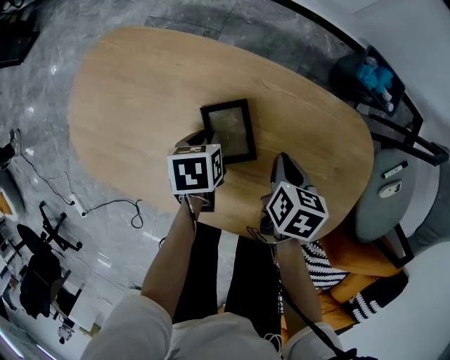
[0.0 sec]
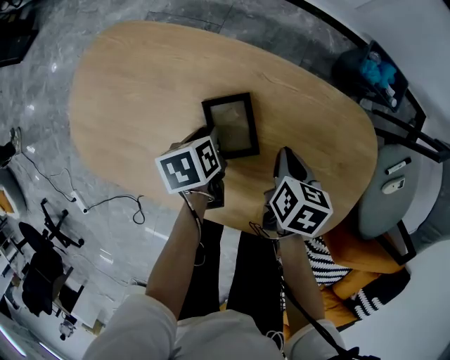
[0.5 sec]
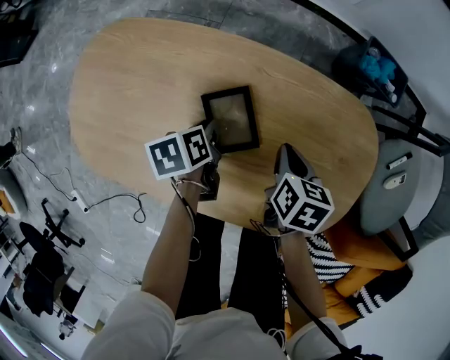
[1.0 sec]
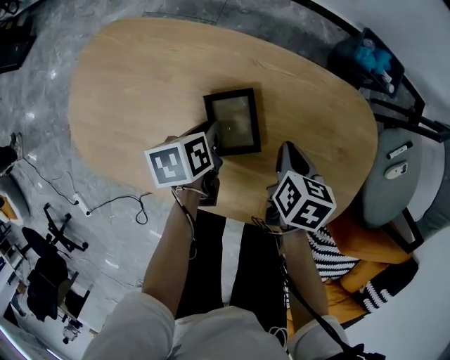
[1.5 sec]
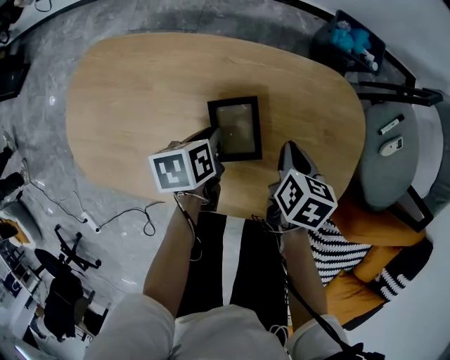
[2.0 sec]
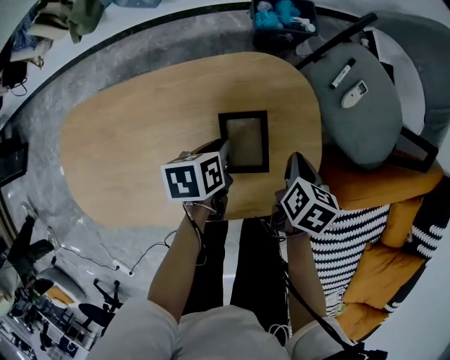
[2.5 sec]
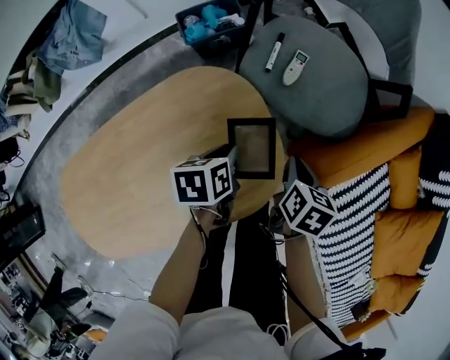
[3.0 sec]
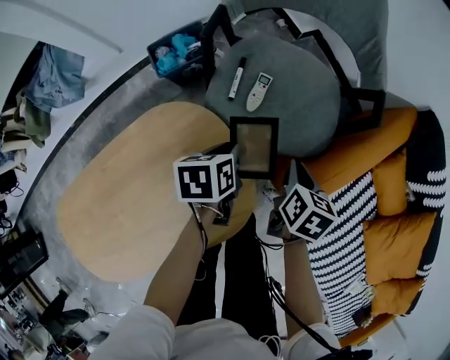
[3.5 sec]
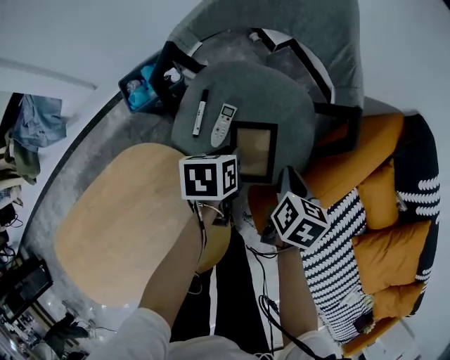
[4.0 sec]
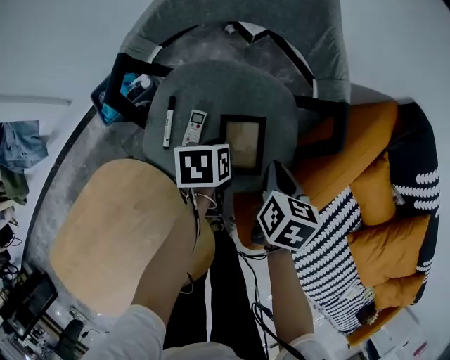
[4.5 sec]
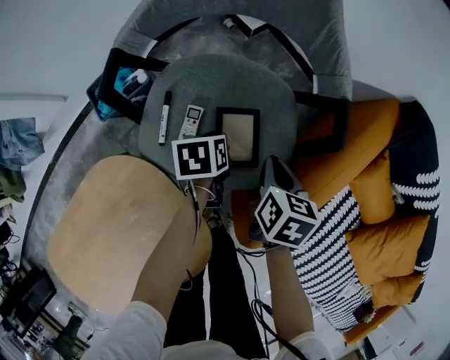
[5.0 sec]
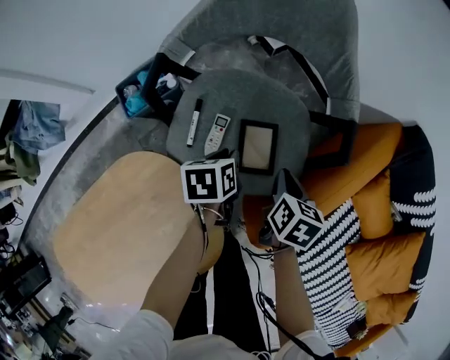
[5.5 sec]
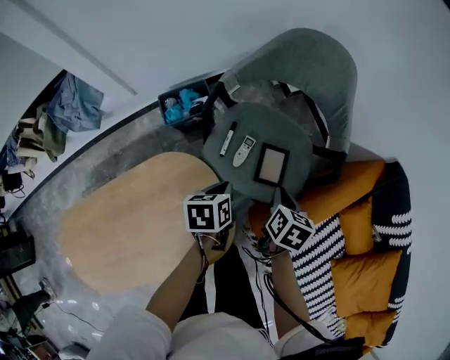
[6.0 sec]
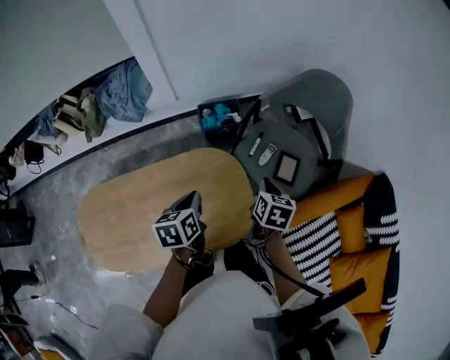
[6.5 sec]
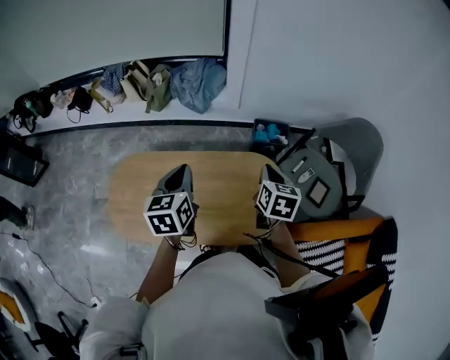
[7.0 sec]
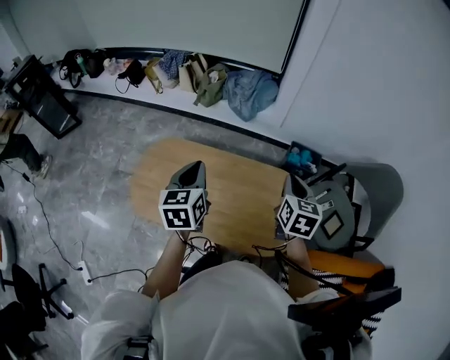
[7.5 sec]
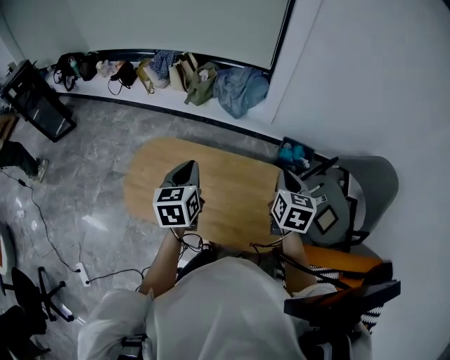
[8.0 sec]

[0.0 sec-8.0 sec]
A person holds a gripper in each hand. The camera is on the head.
0.0 sec to 2.0 sec: The grippers both shift to the right by some 5 cm.
2.0 sec to 4.0 sec: The two grippers travel together, some 50 cm. The right gripper turns by roughly 50 degrees. The left gripper twists roughly 50 degrees clockwise, seen from behind.
4.0 sec to 6.0 sec: The left gripper shifts about 10 cm upward and backward. The right gripper travels upward and to the left by some 10 cm.
6.0 sec to 8.0 sec: The two grippers travel together, approximately 50 cm. The left gripper changes its angle by about 60 degrees; the right gripper rotates approximately 60 degrees.

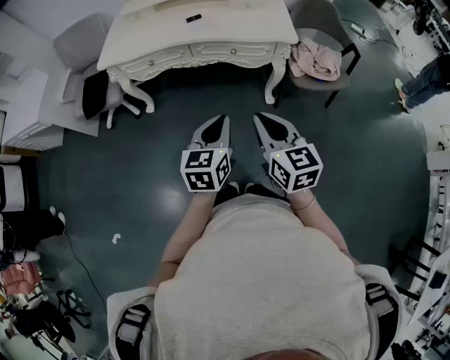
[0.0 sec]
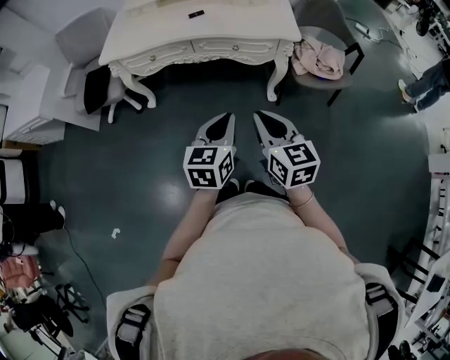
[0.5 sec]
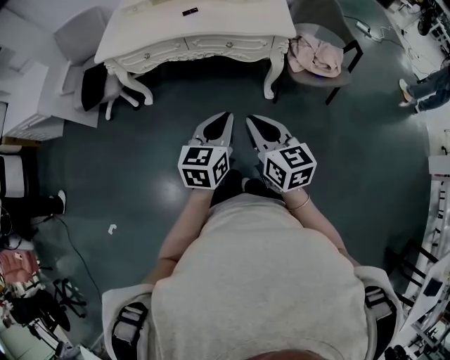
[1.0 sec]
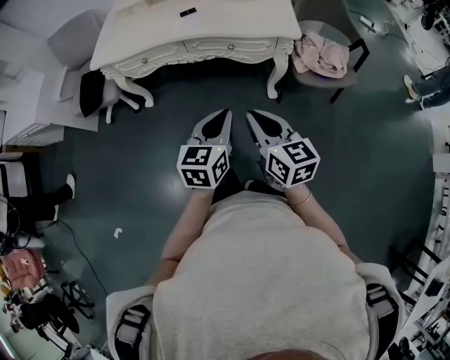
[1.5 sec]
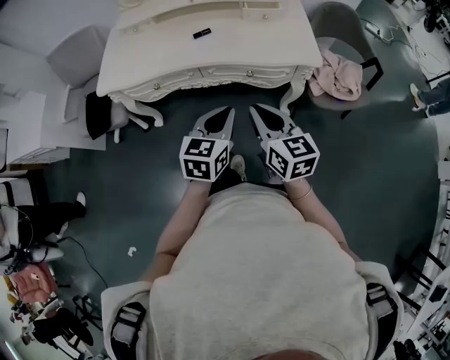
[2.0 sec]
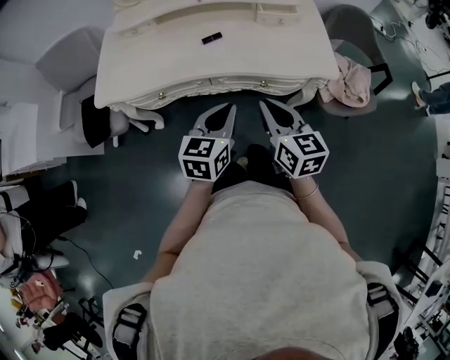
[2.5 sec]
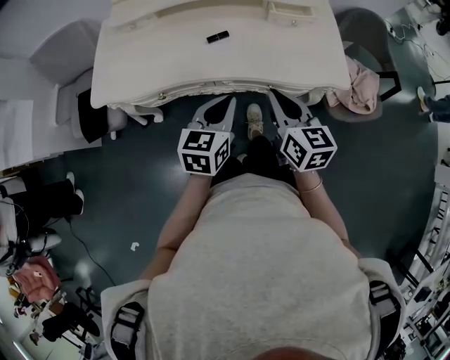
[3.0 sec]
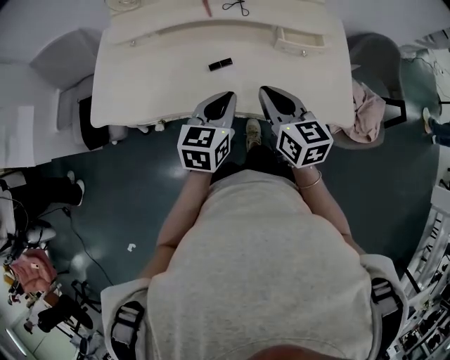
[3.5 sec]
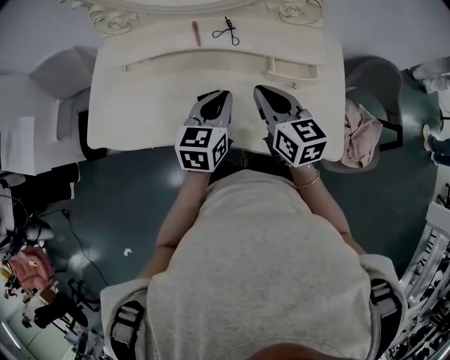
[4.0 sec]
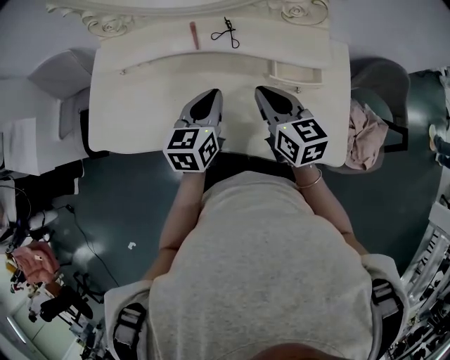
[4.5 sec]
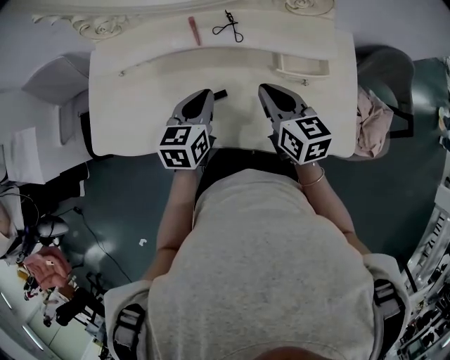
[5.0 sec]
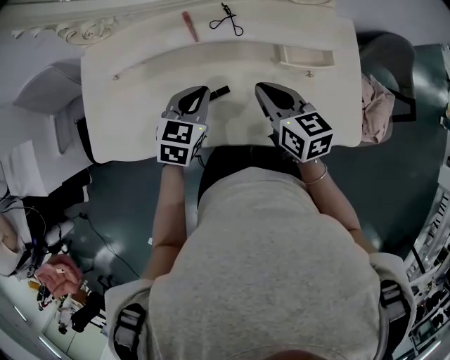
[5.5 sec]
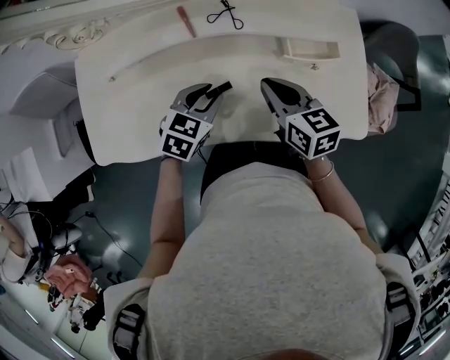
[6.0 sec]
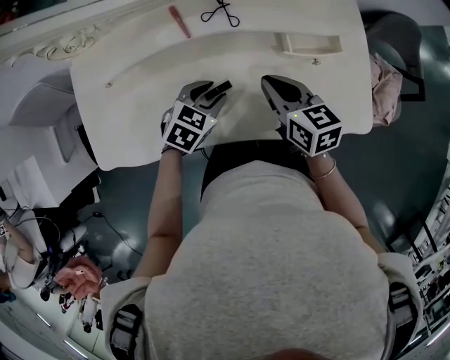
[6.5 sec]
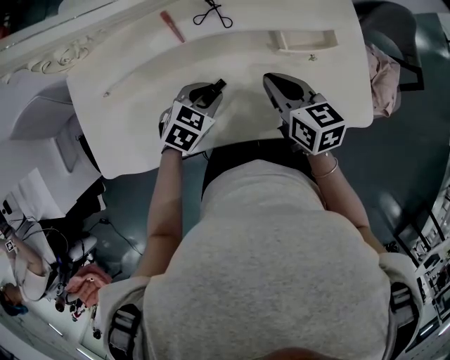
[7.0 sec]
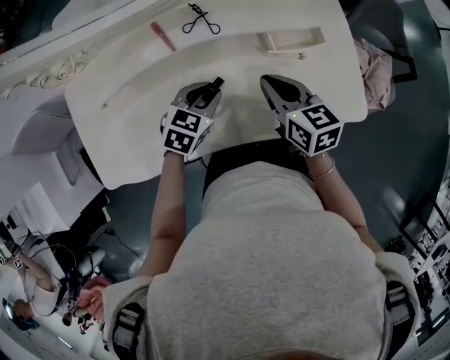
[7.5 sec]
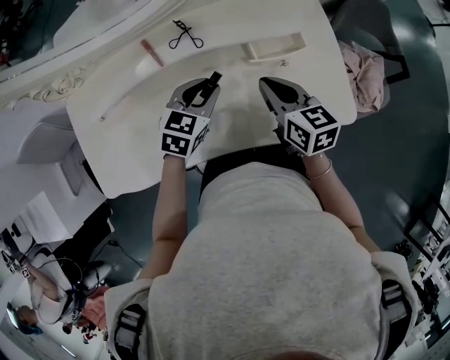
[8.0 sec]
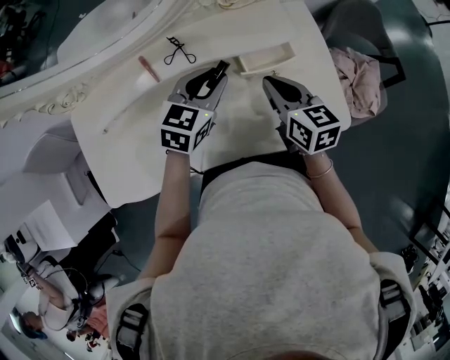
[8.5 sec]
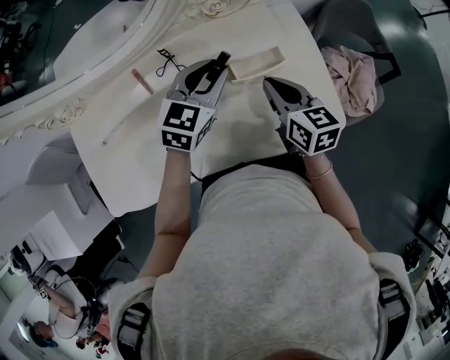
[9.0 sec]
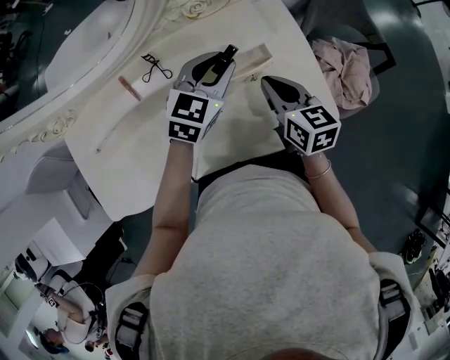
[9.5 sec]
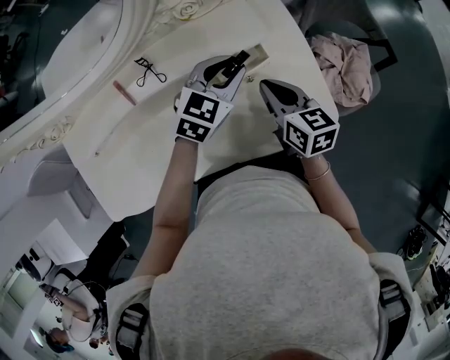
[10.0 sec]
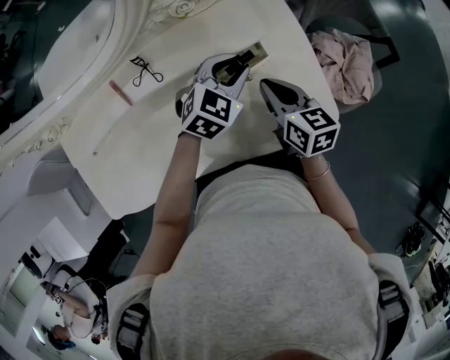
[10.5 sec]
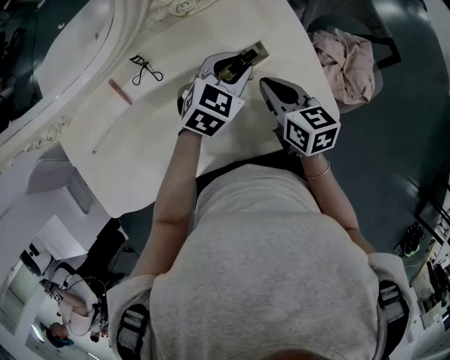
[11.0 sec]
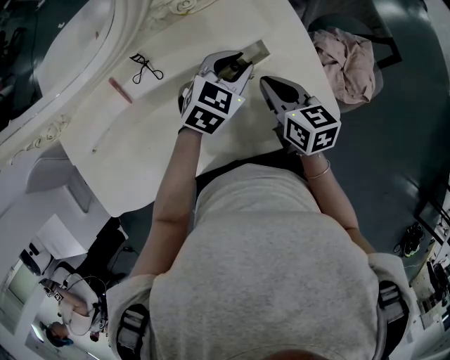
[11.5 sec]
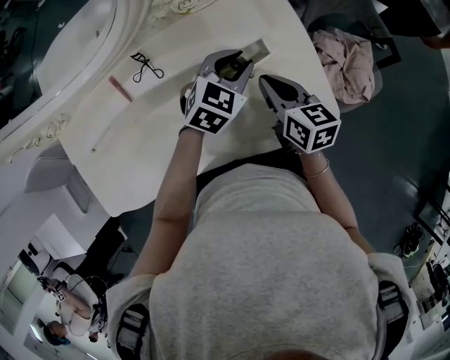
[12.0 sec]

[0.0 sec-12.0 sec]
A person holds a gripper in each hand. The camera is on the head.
0.0 sec to 2.0 sec: Both grippers move forward, approximately 20 cm.
2.0 sec to 4.0 sec: Both grippers travel together forward, approximately 40 cm.
4.0 sec to 6.0 sec: The left gripper travels downward and to the left by some 10 cm, turns by roughly 40 degrees, and opens. The right gripper shifts approximately 5 cm downward.
6.0 sec to 8.0 sec: The right gripper heads to the right, covering roughly 5 cm; the left gripper heads forward and to the right, covering roughly 10 cm.
8.0 sec to 10.0 sec: The right gripper is displaced to the right by some 10 cm. Meanwhile the left gripper goes roughly 20 cm to the right and forward.
10.0 sec to 12.0 sec: The grippers stay close to where they were, moving slightly.

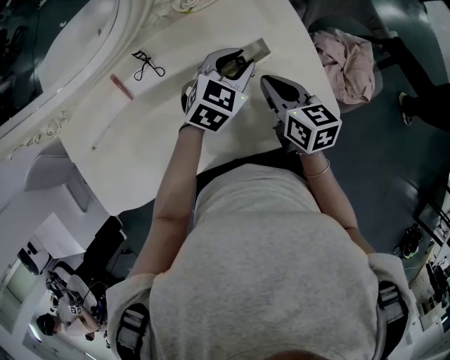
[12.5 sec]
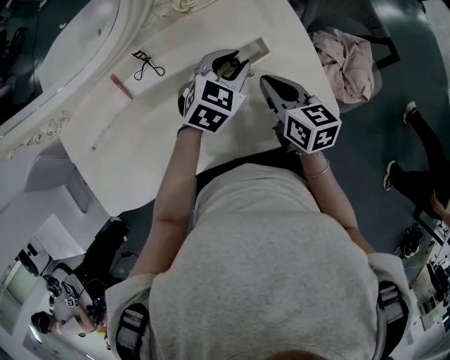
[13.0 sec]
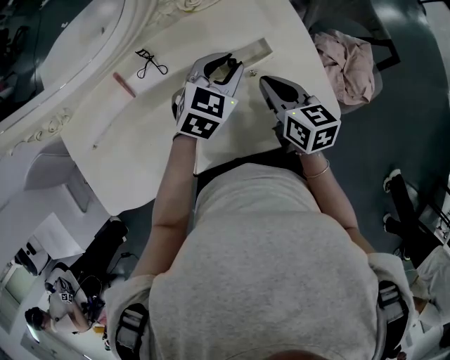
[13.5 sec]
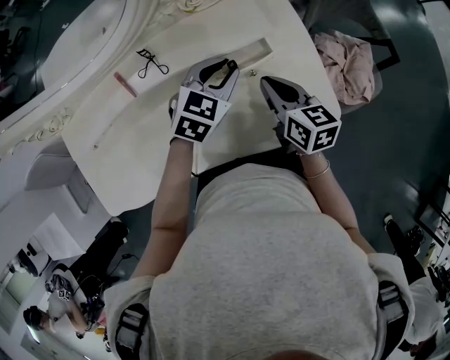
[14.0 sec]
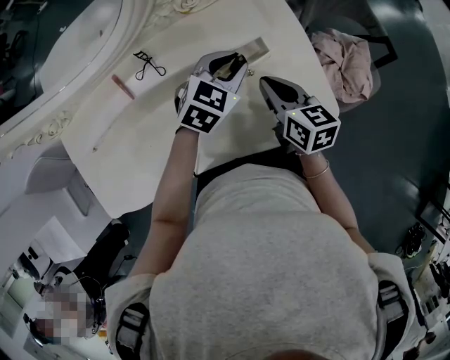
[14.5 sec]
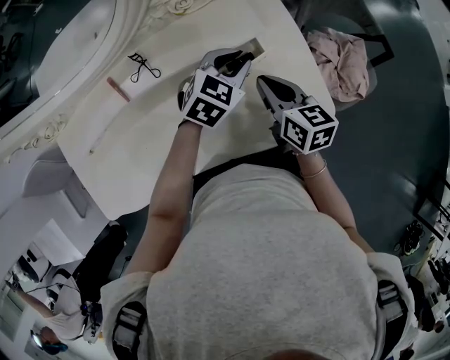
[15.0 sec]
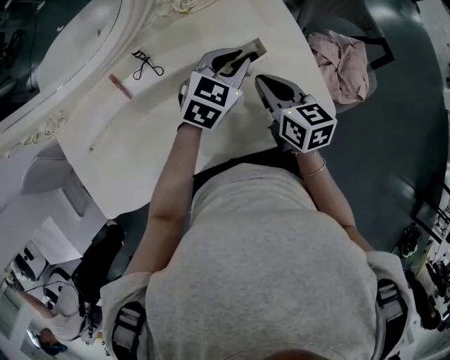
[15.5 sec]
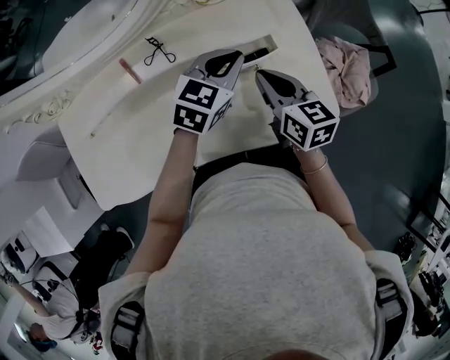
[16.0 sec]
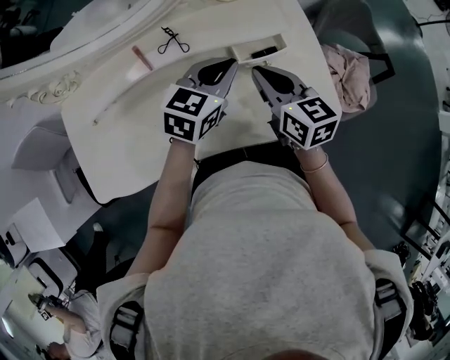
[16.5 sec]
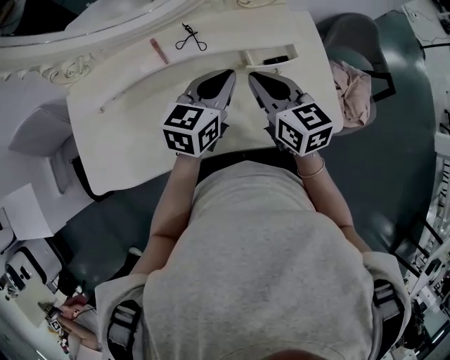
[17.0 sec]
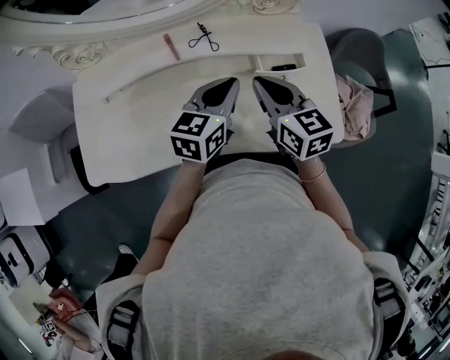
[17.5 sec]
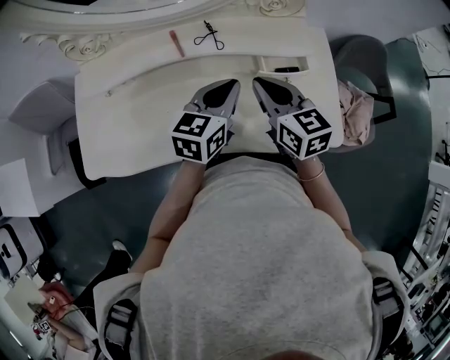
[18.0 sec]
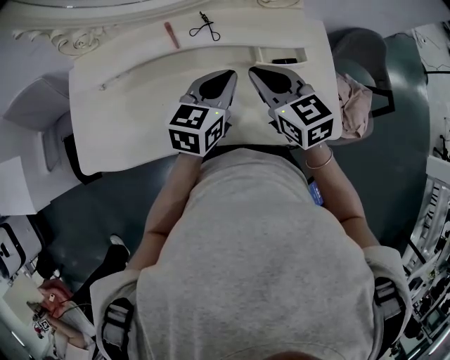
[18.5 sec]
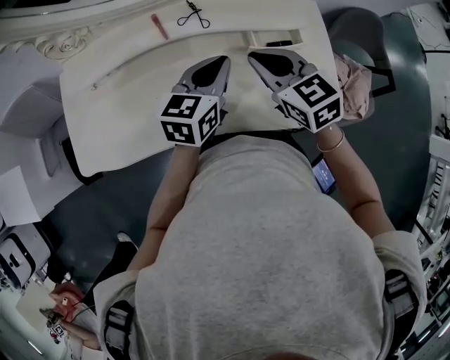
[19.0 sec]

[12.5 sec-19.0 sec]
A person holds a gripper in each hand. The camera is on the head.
12.5 sec to 14.5 sec: There are only small adjustments of the grippers.
14.5 sec to 17.0 sec: The right gripper shifts approximately 15 cm to the left and upward, and rotates some 20 degrees; the left gripper shifts about 15 cm to the left, backward and upward, and turns by some 40 degrees.
17.0 sec to 19.0 sec: The right gripper swivels roughly 20 degrees.
